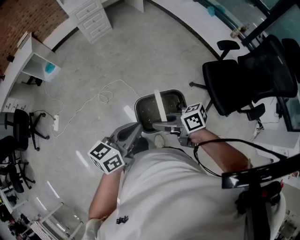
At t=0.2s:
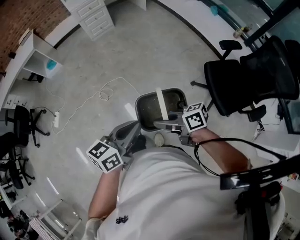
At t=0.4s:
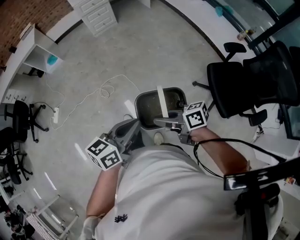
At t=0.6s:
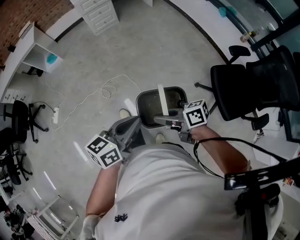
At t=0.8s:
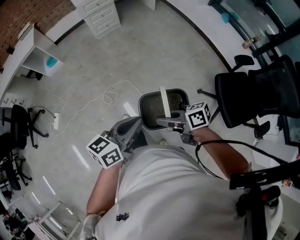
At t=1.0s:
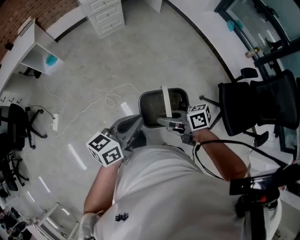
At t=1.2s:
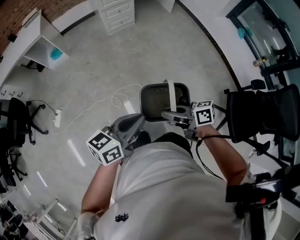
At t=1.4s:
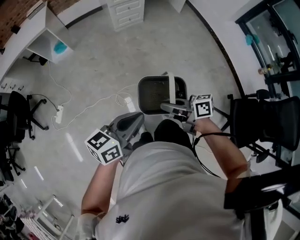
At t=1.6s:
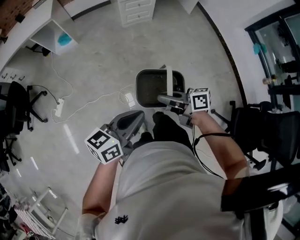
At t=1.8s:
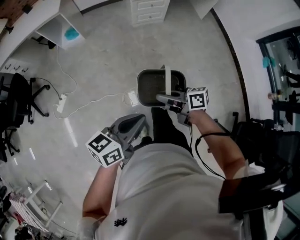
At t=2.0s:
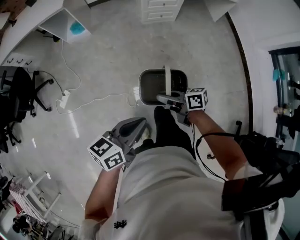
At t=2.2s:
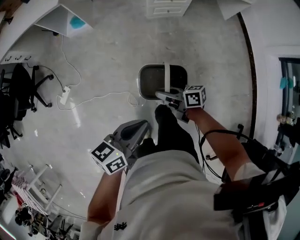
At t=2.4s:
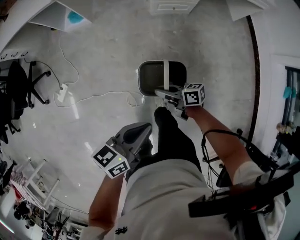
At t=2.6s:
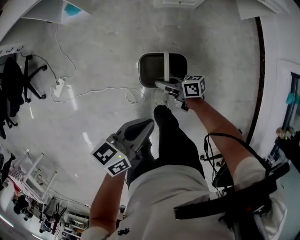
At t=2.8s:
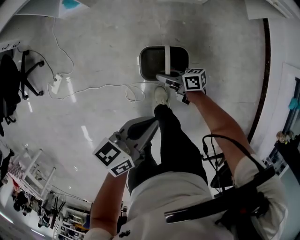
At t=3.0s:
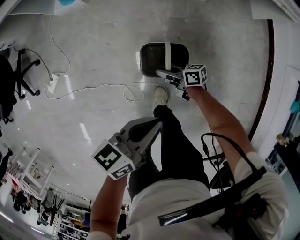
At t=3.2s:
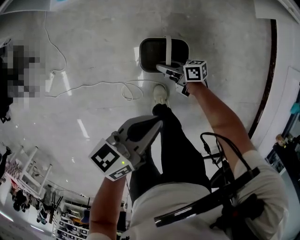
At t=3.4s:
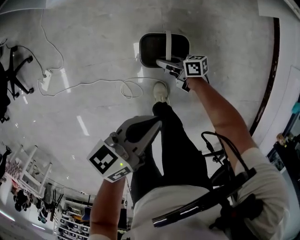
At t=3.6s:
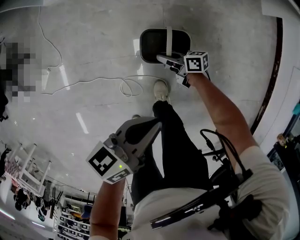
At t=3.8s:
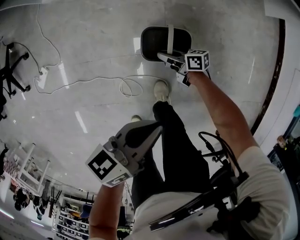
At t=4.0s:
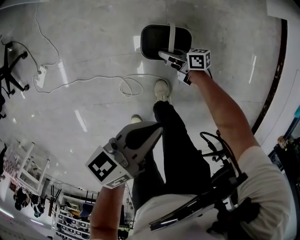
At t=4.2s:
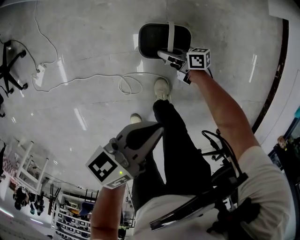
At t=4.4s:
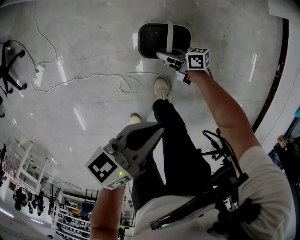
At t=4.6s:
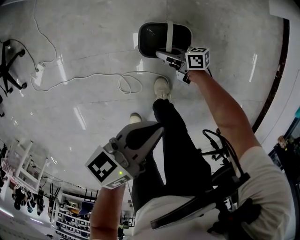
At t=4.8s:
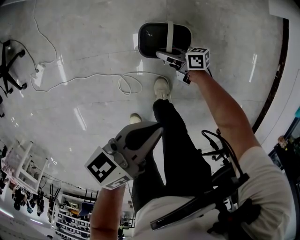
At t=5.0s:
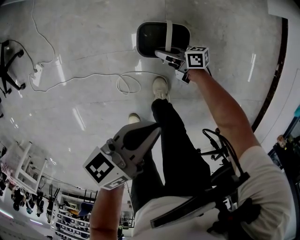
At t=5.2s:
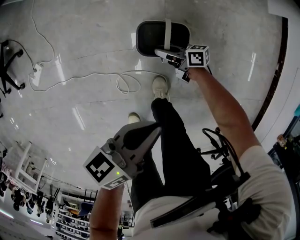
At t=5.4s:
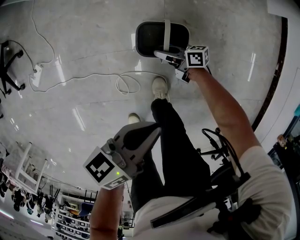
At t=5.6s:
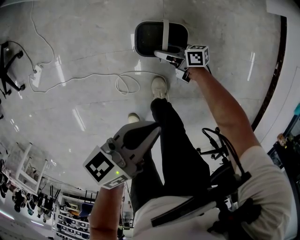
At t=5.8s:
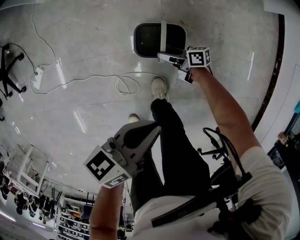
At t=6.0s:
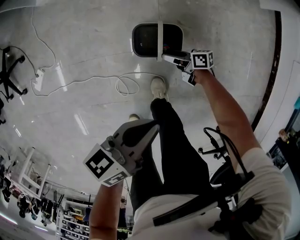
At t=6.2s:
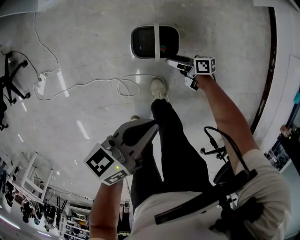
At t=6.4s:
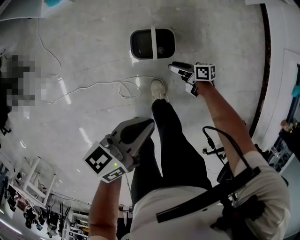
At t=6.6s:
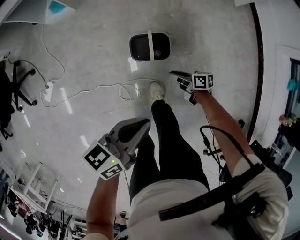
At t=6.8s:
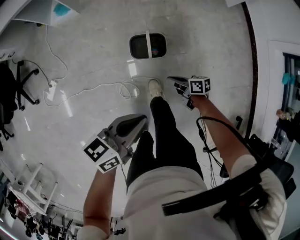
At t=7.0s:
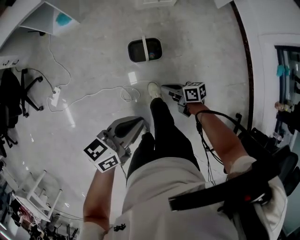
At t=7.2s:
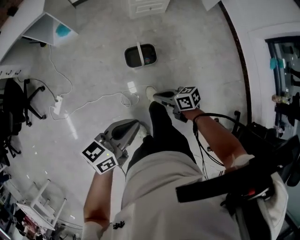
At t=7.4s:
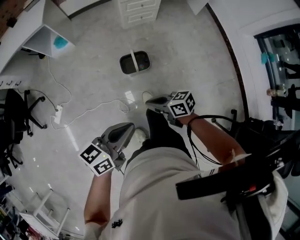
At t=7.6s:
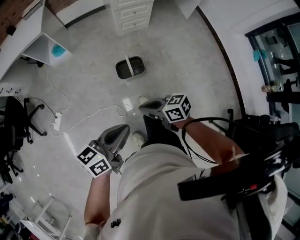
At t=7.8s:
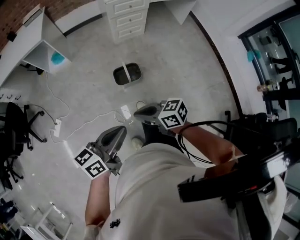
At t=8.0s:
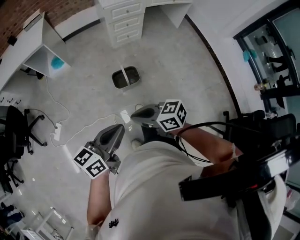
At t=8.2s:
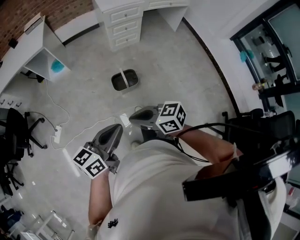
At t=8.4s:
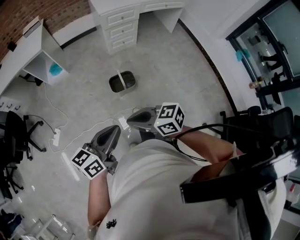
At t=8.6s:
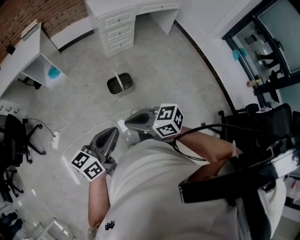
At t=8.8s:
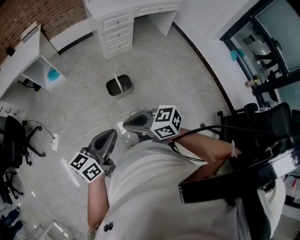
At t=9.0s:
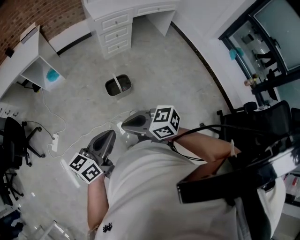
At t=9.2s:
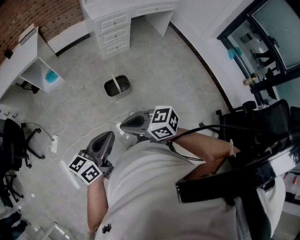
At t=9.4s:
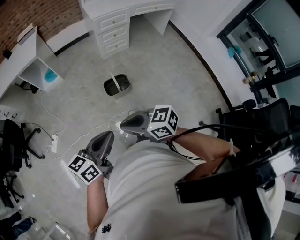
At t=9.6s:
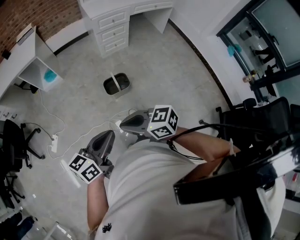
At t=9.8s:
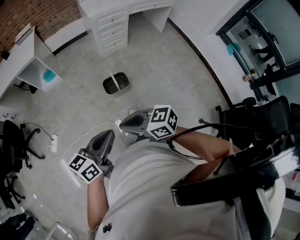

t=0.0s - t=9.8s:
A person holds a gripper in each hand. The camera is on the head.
t=0.0s - t=1.4s: The pair of grippers is taken roughly 40 cm.
t=1.4s - t=2.8s: The pair of grippers is taken about 50 cm. The right gripper changes its angle by approximately 20 degrees; the left gripper rotates some 30 degrees.
t=2.8s - t=4.2s: The two grippers go about 20 cm downward.
t=4.2s - t=5.6s: The right gripper opens its fingers.
t=5.6s - t=7.0s: The two grippers go some 30 cm upward. The right gripper closes its fingers.
t=7.0s - t=8.4s: The left gripper is displaced upward by approximately 15 cm; the right gripper heads upward, covering about 35 cm, and rotates some 30 degrees.
t=8.4s - t=9.8s: The grippers move only a little.

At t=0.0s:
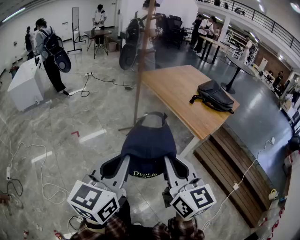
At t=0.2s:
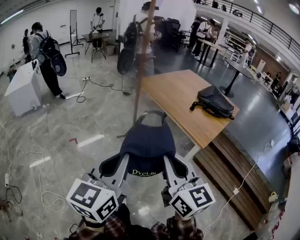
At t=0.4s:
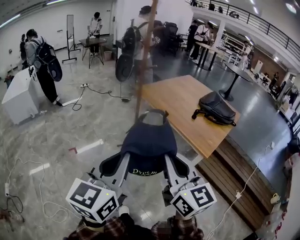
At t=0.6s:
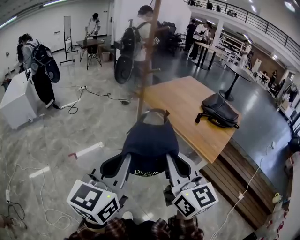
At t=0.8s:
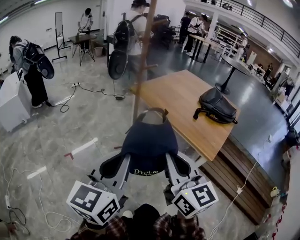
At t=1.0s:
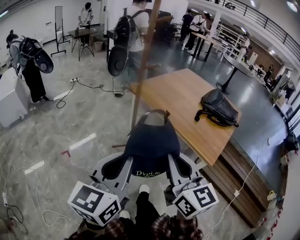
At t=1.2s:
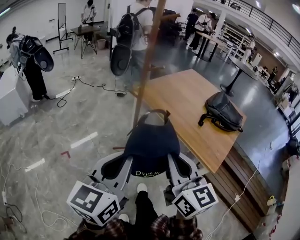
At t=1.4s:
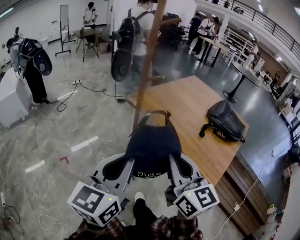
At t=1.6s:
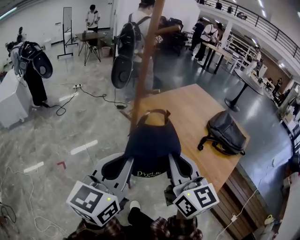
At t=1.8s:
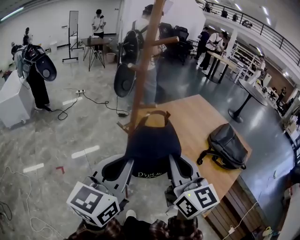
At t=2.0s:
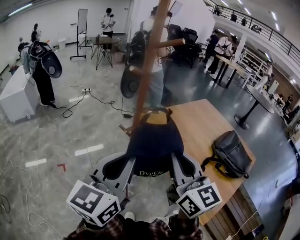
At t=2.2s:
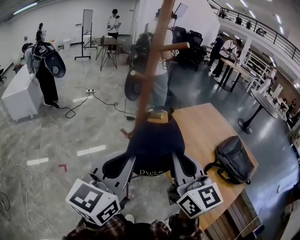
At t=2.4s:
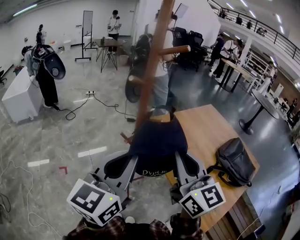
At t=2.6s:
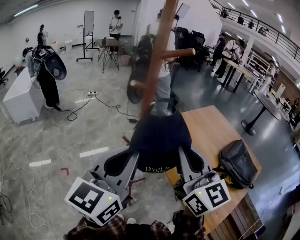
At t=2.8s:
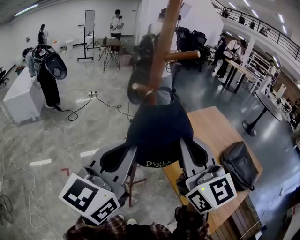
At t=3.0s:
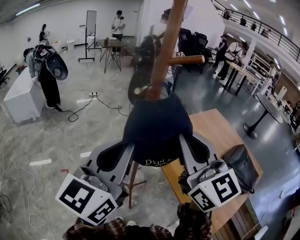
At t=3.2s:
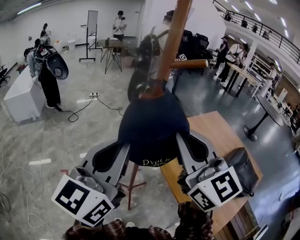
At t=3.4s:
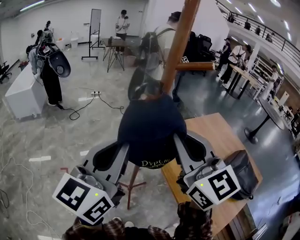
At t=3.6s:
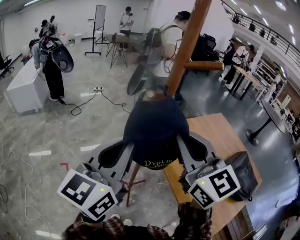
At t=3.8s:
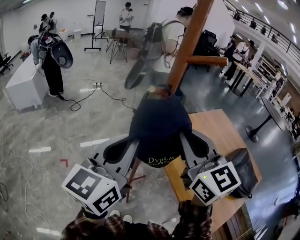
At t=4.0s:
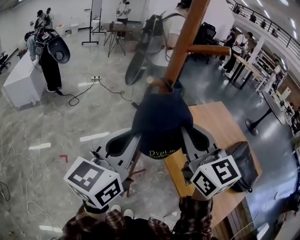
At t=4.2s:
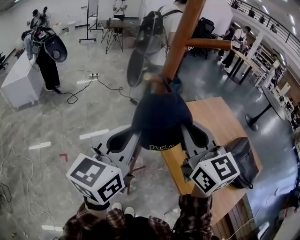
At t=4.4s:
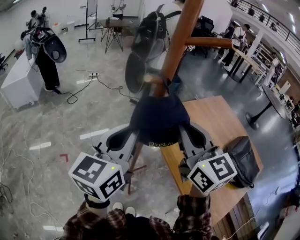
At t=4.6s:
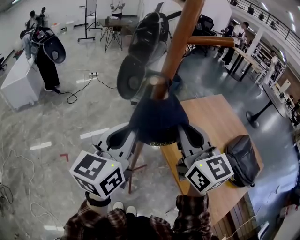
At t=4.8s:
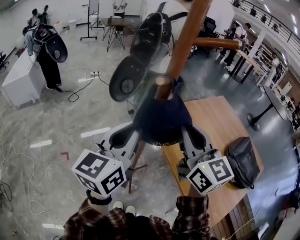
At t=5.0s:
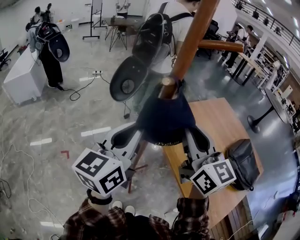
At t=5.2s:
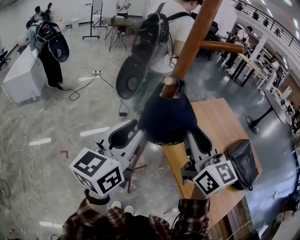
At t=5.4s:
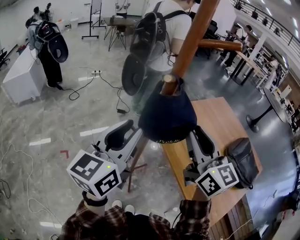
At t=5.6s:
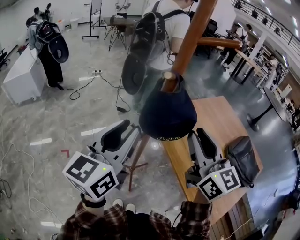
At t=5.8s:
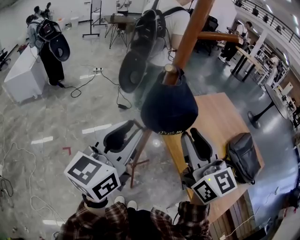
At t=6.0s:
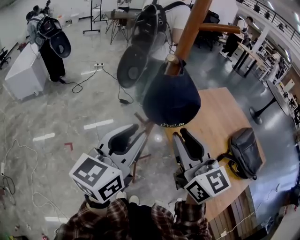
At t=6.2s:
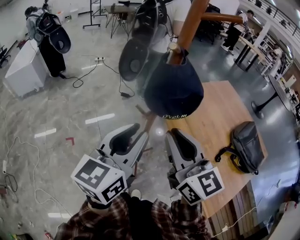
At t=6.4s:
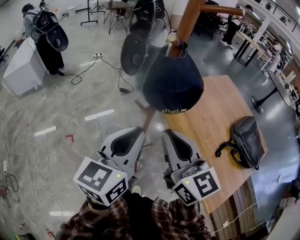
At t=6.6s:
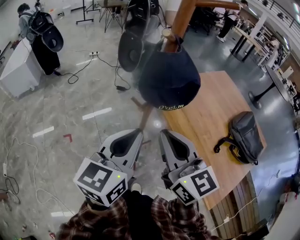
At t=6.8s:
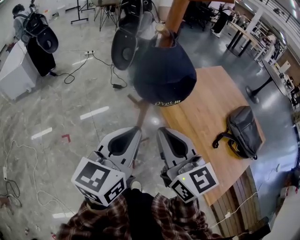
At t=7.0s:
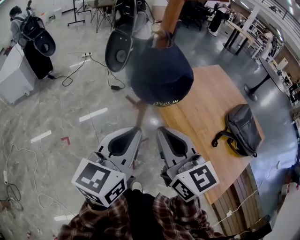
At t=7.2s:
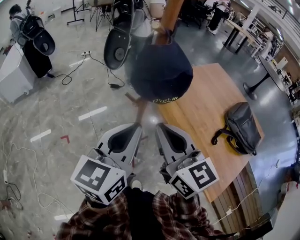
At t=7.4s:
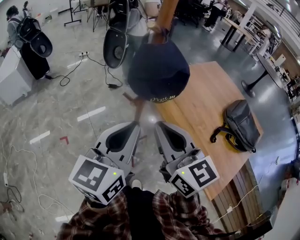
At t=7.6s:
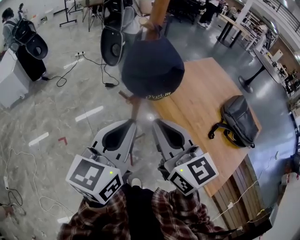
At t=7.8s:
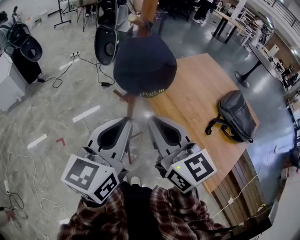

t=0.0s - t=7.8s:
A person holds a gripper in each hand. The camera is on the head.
t=0.0s - t=1.6s: The pair of grippers is taken forward, about 60 cm.
t=1.6s - t=3.2s: Both grippers move forward and upward, approximately 25 cm. The right gripper turns by about 30 degrees.
t=3.2s - t=4.6s: Both grippers travel together downward and forward, roughly 15 cm.
t=4.6s - t=6.2s: The left gripper goes some 10 cm backward, and opens. Meanwhile the right gripper moves backward and downward, roughly 10 cm.
t=6.2s - t=7.8s: The left gripper closes up.

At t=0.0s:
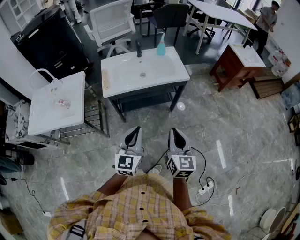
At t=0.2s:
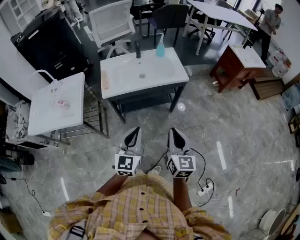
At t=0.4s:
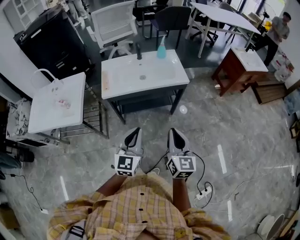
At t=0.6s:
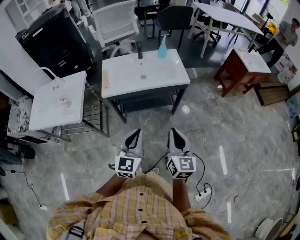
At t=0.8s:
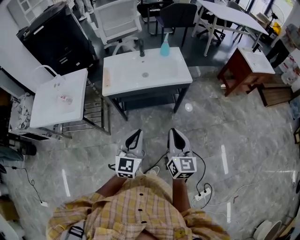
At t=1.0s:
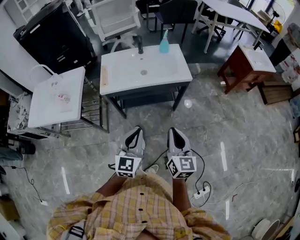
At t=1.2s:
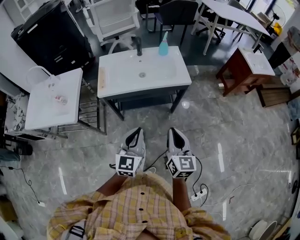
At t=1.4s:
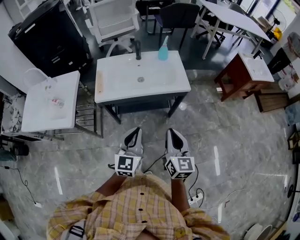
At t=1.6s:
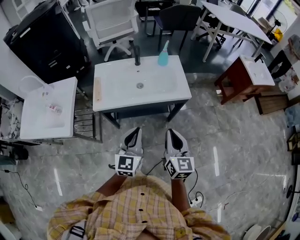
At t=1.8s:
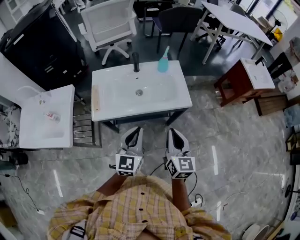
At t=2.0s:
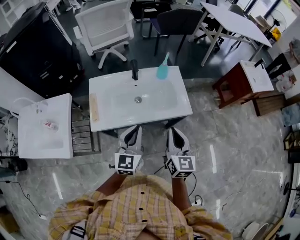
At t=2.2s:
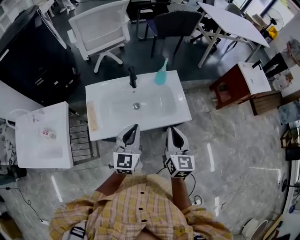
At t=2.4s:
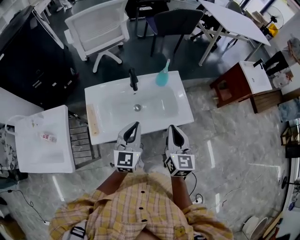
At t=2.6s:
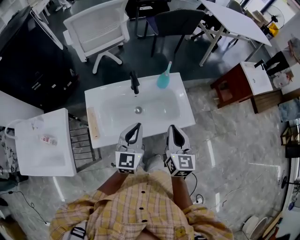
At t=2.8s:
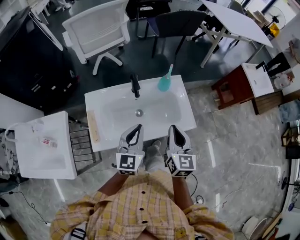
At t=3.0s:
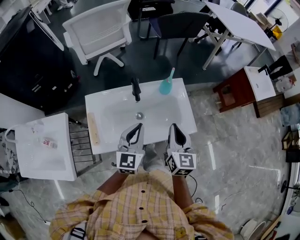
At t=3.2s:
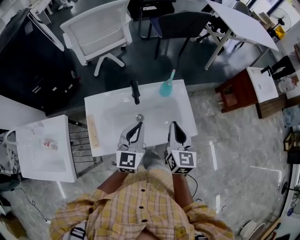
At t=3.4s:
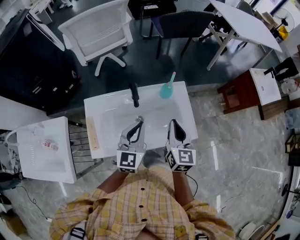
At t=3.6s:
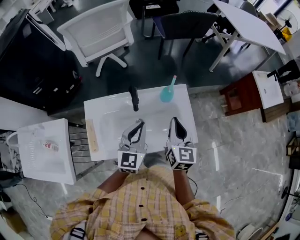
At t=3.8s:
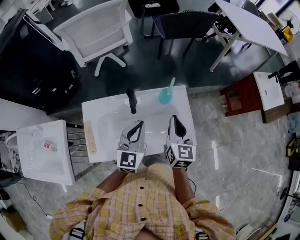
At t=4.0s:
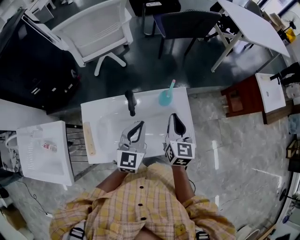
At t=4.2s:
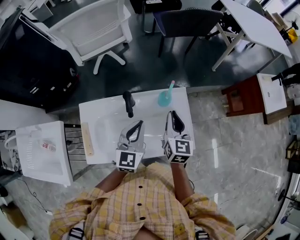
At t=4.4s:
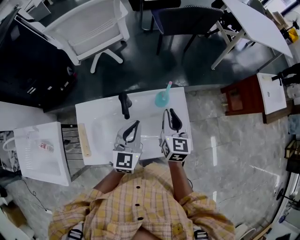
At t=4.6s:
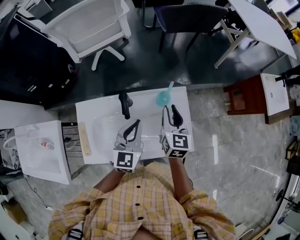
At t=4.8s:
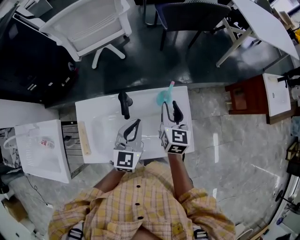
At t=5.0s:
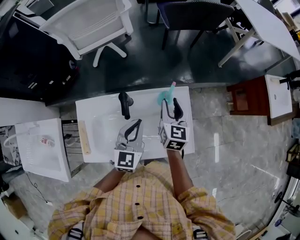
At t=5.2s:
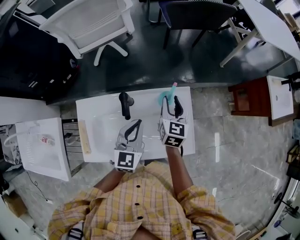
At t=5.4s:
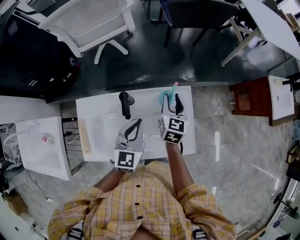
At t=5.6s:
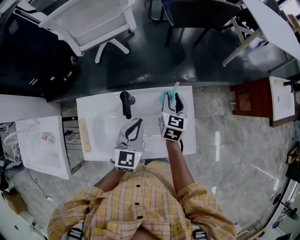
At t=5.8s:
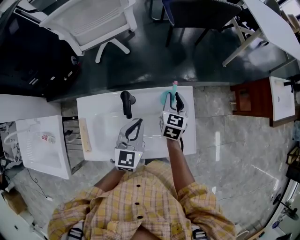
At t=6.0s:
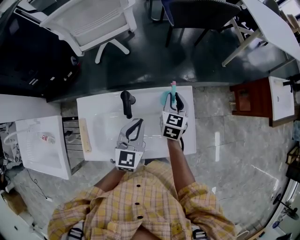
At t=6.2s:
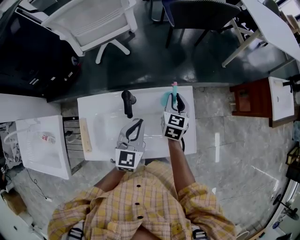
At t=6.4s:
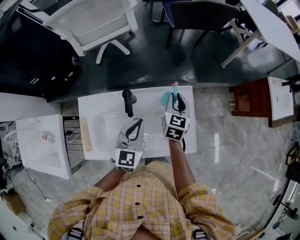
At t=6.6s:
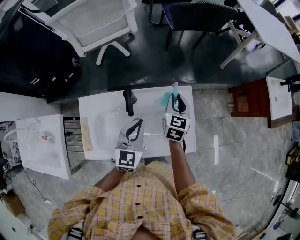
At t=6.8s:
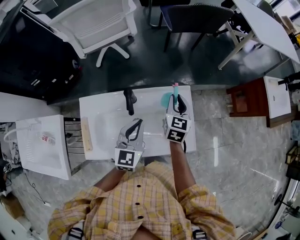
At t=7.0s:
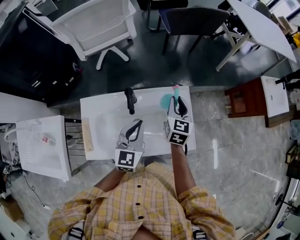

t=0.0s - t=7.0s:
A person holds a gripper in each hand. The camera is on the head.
t=0.0s - t=1.4s: The right gripper goes about 10 cm forward; the left gripper is displaced forward and to the right by approximately 10 cm.
t=1.4s - t=2.8s: Both grippers travel together forward, approximately 35 cm.
t=2.8s - t=4.2s: Both grippers move forward, roughly 20 cm.
t=4.2s - t=5.6s: The left gripper moves some 5 cm. The right gripper heads forward and downward, covering some 15 cm, and opens its fingers.
t=5.6s - t=7.0s: The left gripper moves roughly 5 cm. Meanwhile the right gripper moves upward, about 5 cm.
